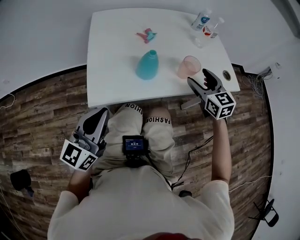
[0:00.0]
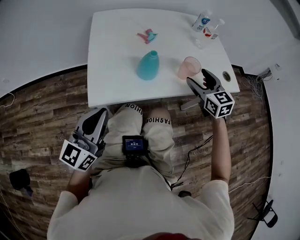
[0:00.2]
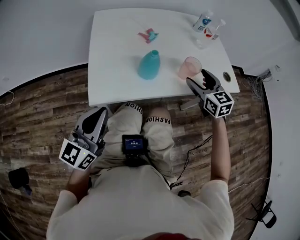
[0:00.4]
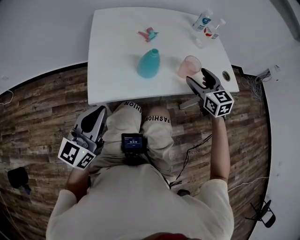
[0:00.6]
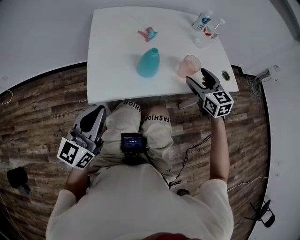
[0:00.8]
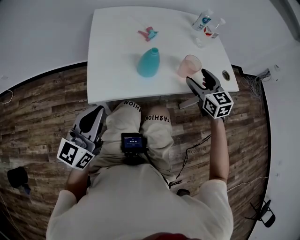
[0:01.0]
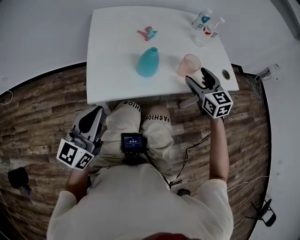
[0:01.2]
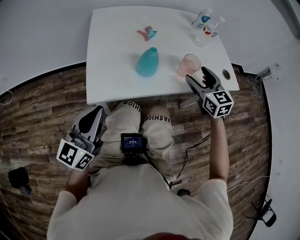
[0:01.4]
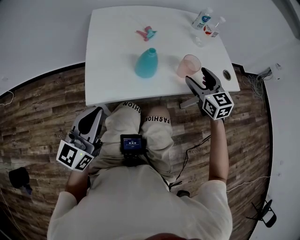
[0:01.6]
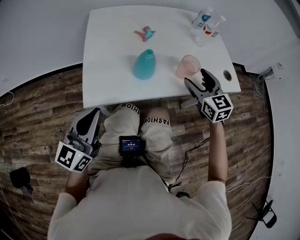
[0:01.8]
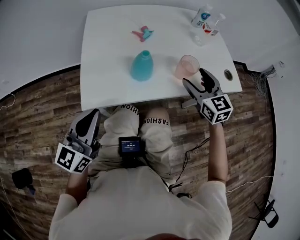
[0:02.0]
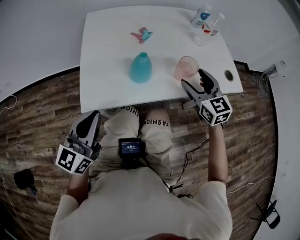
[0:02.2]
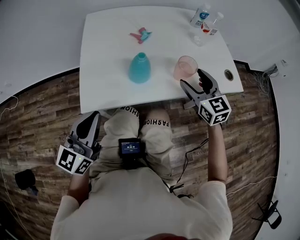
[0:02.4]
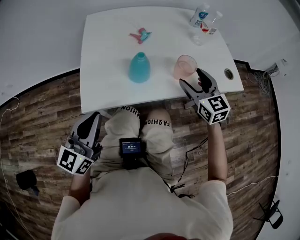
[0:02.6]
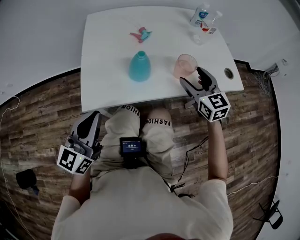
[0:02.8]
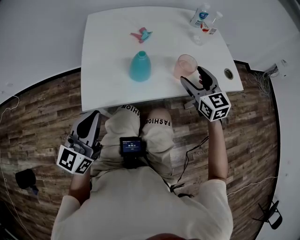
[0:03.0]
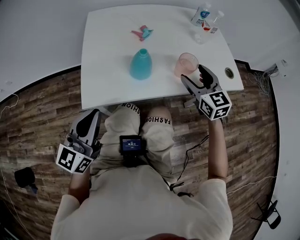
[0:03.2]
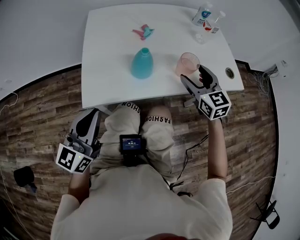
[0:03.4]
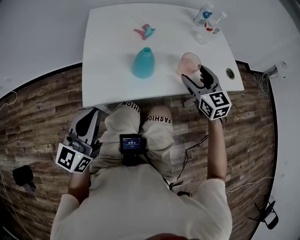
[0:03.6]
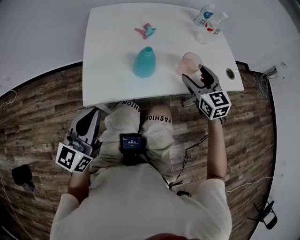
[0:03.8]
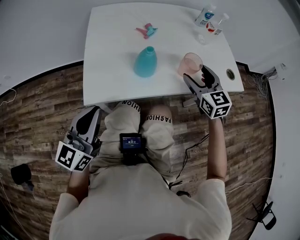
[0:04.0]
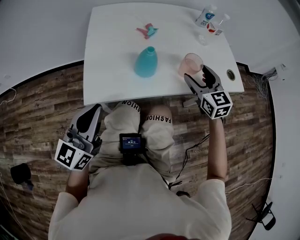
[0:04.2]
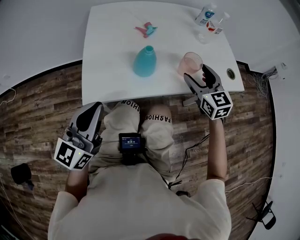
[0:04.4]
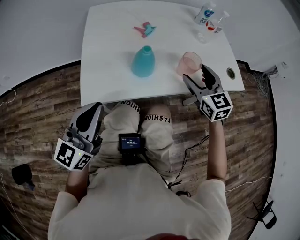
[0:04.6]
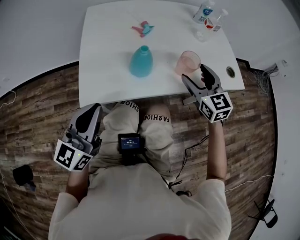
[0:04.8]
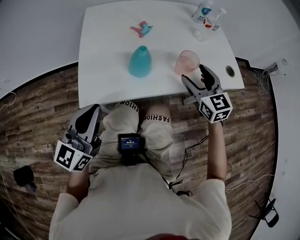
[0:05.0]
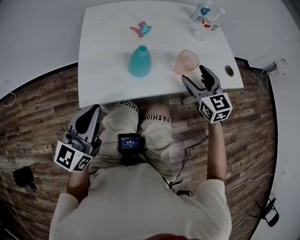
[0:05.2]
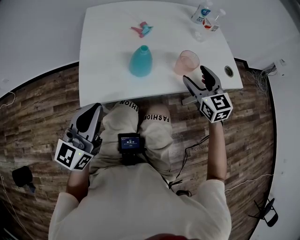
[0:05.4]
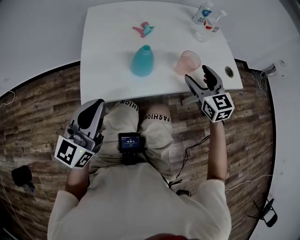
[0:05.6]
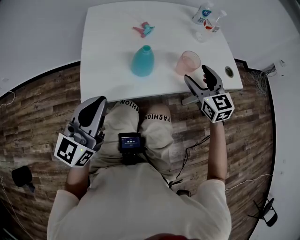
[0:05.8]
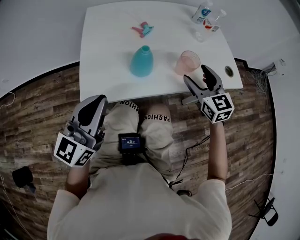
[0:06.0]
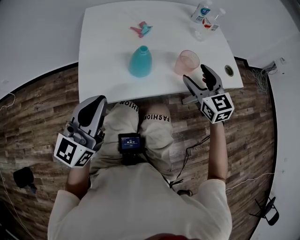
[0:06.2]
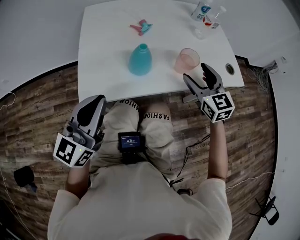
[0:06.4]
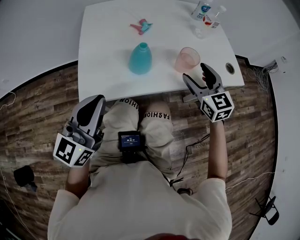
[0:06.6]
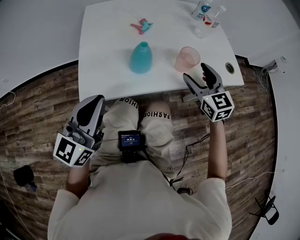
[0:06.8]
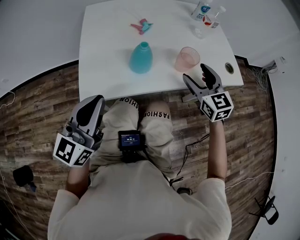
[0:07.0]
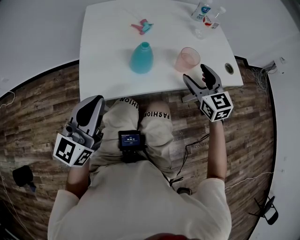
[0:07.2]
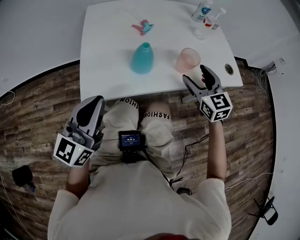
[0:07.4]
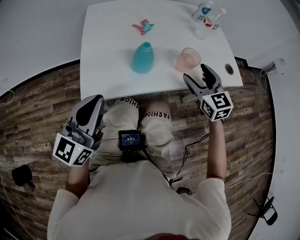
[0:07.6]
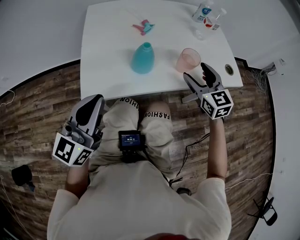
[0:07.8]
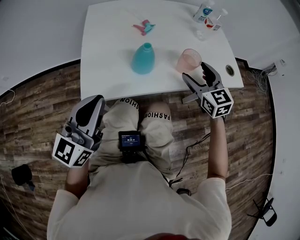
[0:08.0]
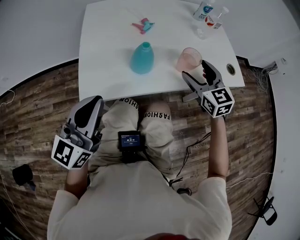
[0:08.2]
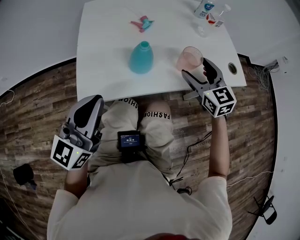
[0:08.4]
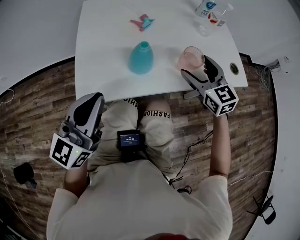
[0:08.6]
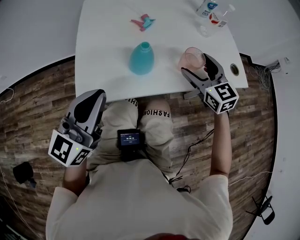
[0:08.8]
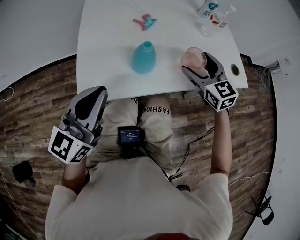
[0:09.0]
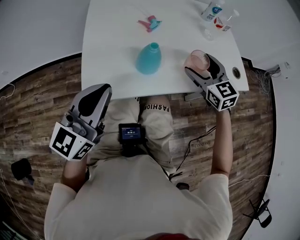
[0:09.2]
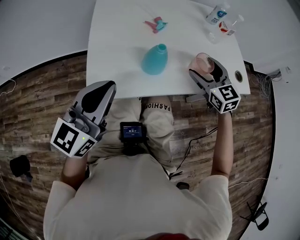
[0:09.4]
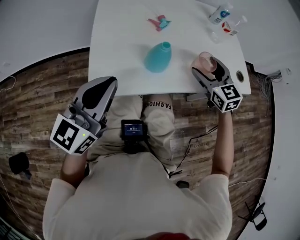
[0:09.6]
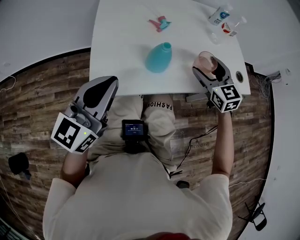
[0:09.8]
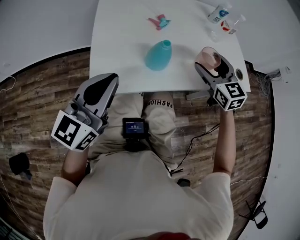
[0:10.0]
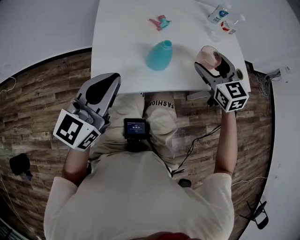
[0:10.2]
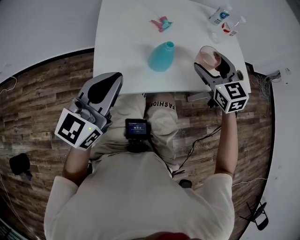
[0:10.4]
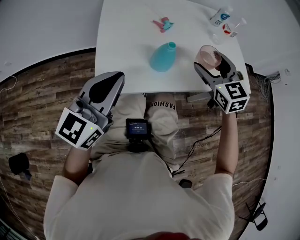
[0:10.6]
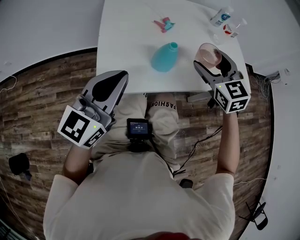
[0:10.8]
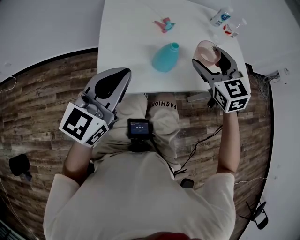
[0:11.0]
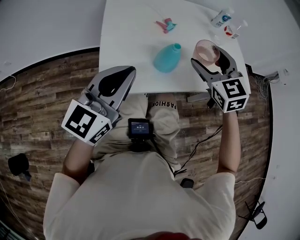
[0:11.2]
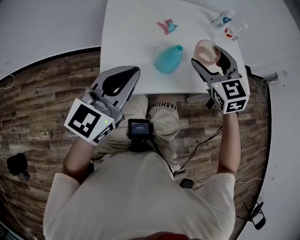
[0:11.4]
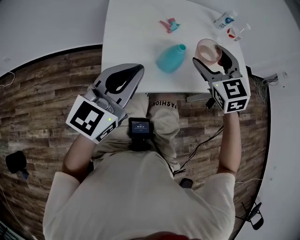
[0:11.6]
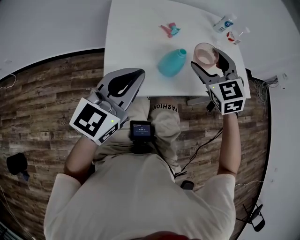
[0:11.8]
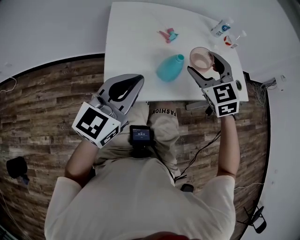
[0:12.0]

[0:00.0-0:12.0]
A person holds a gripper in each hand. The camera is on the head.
0.0 to 3.0 s: There are only small adjustments of the grippers.
3.0 to 4.4 s: Neither gripper changes place.
4.4 to 9.0 s: The grippers stay close to where they were, moving slightly.
9.0 to 10.4 s: The right gripper changes place by about 5 cm.
10.4 to 12.0 s: The right gripper moves to the left, approximately 10 cm.

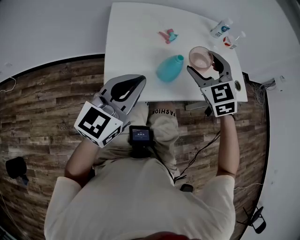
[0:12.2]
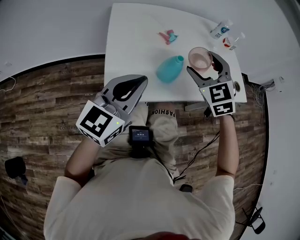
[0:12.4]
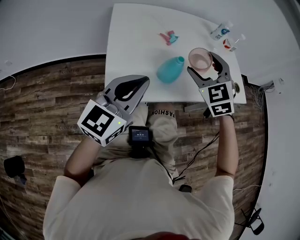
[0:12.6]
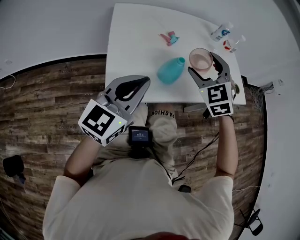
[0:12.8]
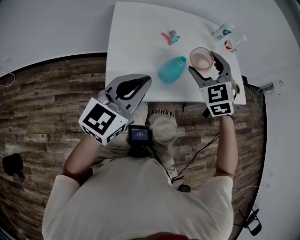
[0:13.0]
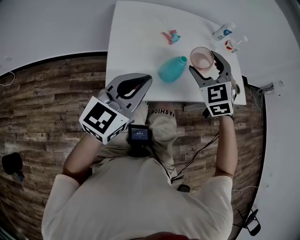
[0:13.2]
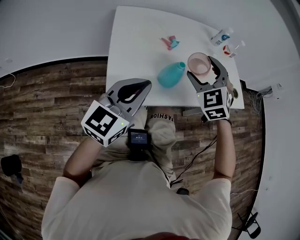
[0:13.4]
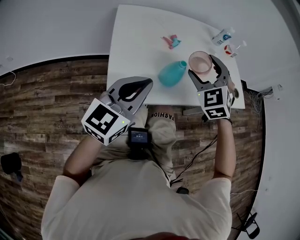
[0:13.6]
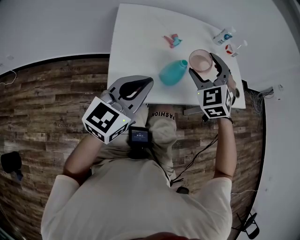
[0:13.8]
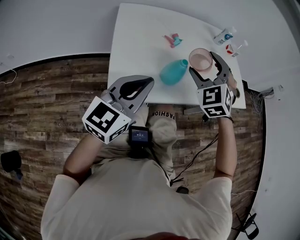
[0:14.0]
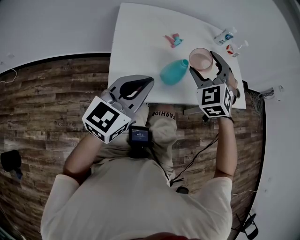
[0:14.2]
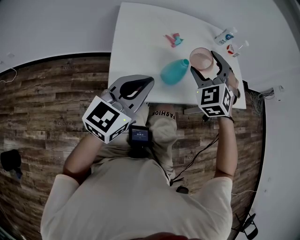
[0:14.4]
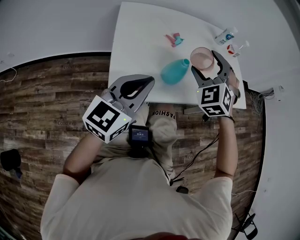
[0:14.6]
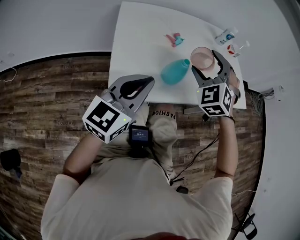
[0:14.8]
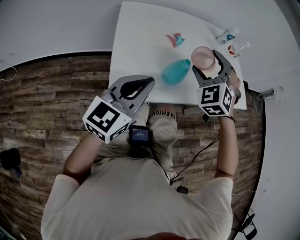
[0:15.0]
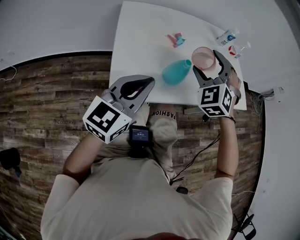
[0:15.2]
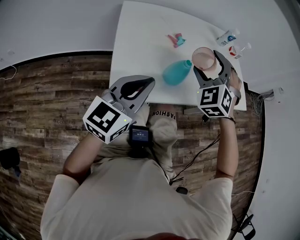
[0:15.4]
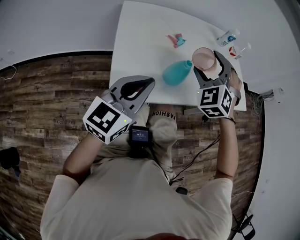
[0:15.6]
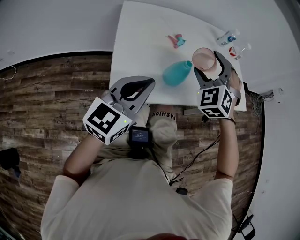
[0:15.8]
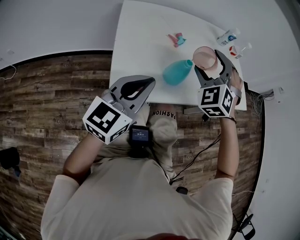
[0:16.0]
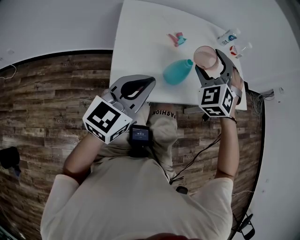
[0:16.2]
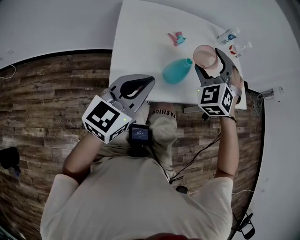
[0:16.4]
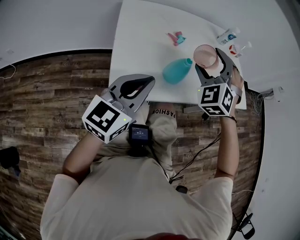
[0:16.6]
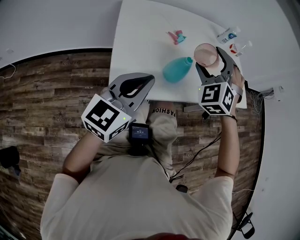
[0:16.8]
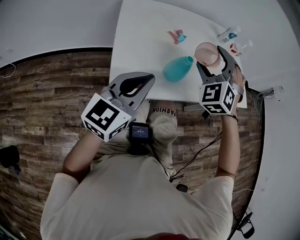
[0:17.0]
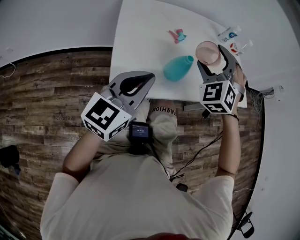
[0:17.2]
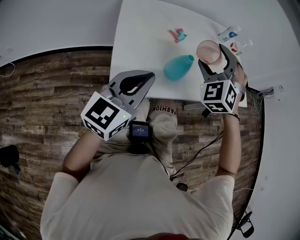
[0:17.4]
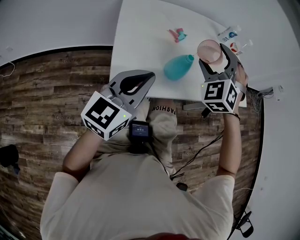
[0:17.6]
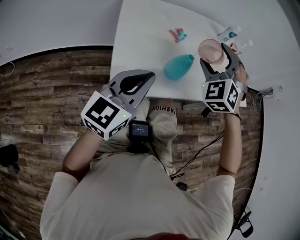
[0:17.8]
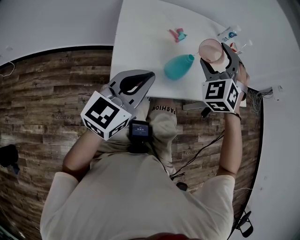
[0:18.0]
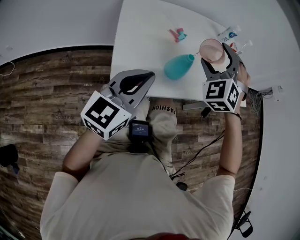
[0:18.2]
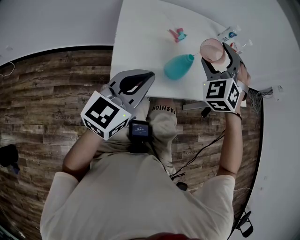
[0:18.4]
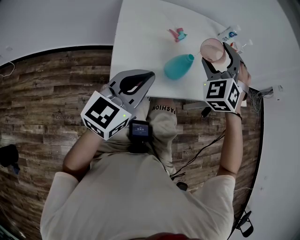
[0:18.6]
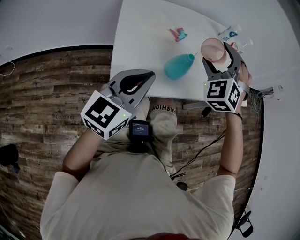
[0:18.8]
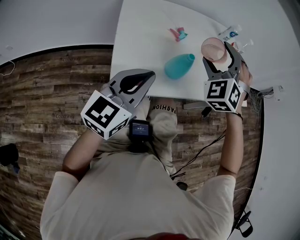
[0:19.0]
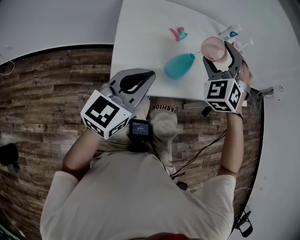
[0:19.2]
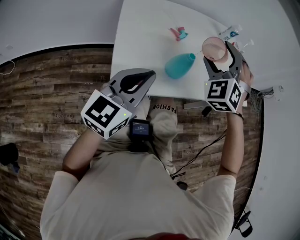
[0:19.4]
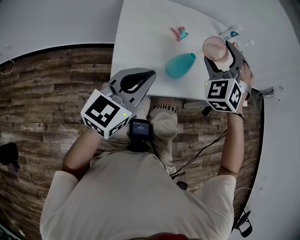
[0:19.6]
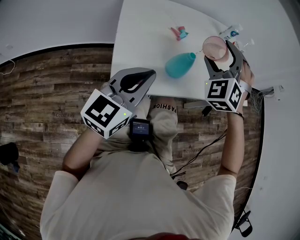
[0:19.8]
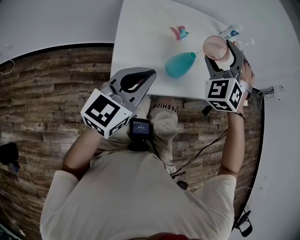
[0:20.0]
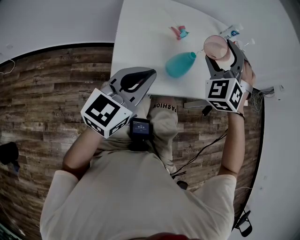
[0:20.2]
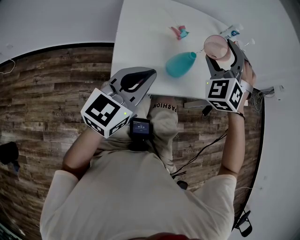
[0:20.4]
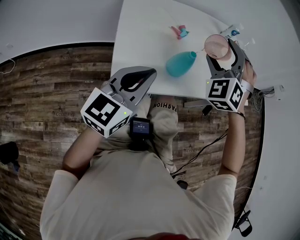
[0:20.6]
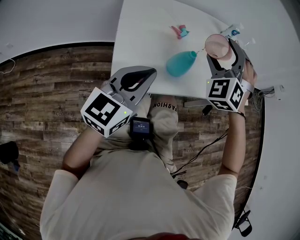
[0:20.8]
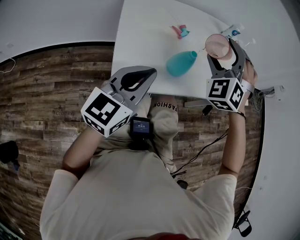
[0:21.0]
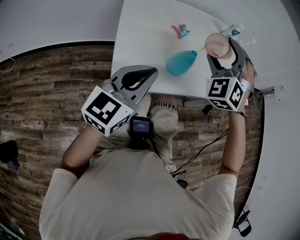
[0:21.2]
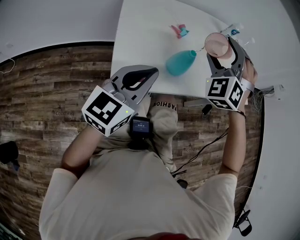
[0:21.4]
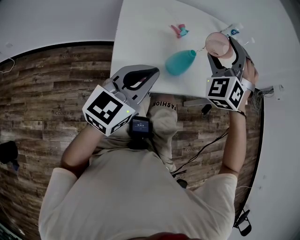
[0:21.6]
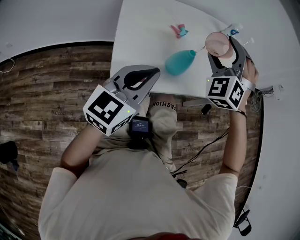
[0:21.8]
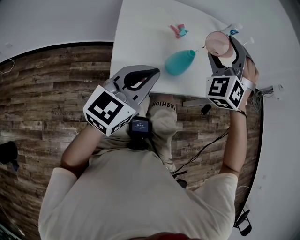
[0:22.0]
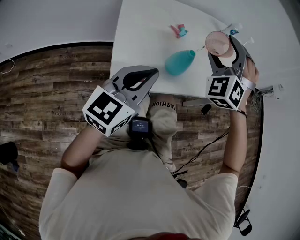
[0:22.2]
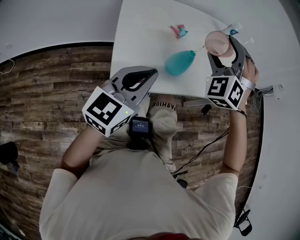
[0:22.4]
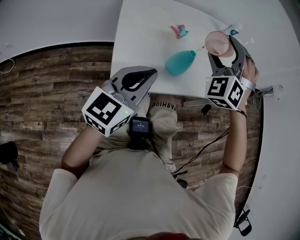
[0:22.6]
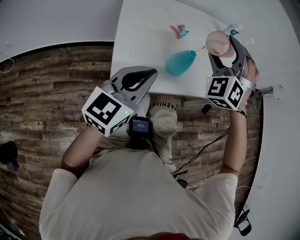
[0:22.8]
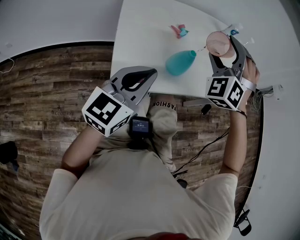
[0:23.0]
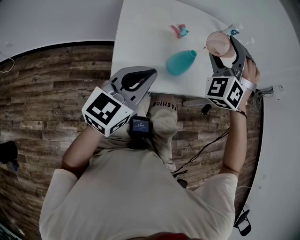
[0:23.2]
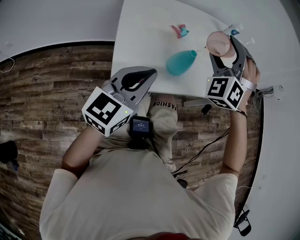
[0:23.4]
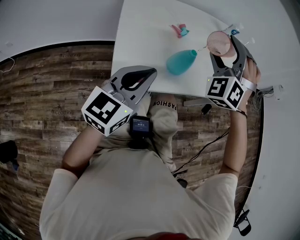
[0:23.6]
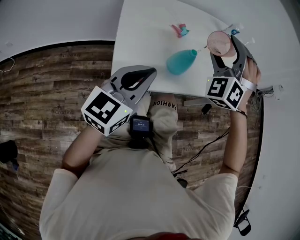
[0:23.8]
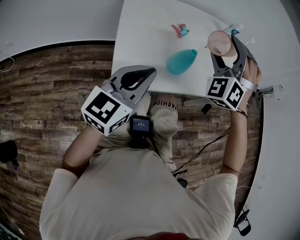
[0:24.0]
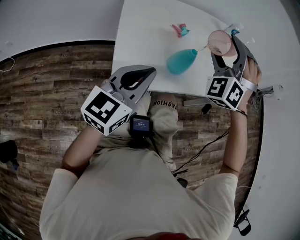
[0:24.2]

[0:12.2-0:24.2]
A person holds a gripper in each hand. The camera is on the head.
12.2 to 13.8 s: The grippers move only a little.
13.8 to 15.2 s: The grippers move only a little.
15.2 to 16.6 s: The two grippers keep their place.
16.6 to 18.2 s: The grippers stay close to where they were, moving slightly.
18.2 to 19.8 s: Neither gripper changes place.
19.8 to 21.2 s: Neither gripper changes place.
21.2 to 22.6 s: The two grippers keep their place.
22.6 to 24.2 s: The grippers move only a little.

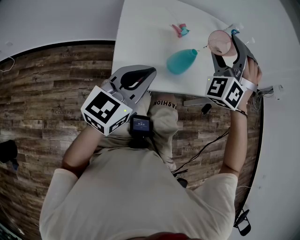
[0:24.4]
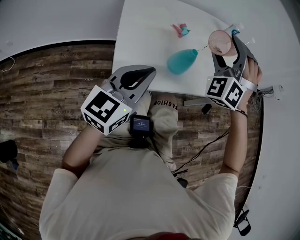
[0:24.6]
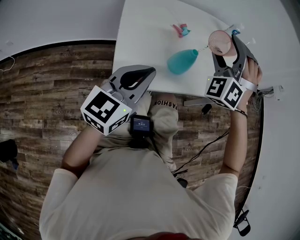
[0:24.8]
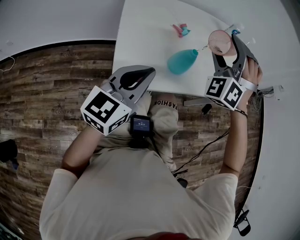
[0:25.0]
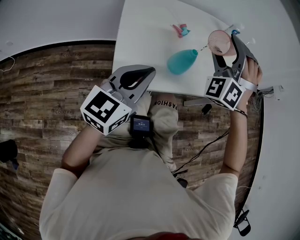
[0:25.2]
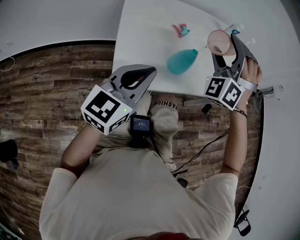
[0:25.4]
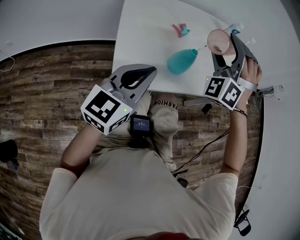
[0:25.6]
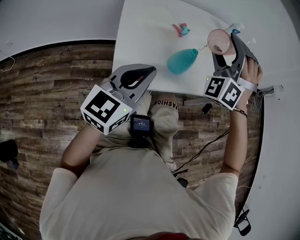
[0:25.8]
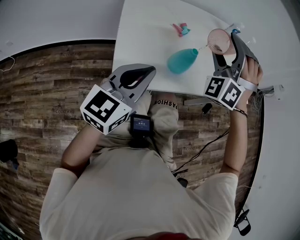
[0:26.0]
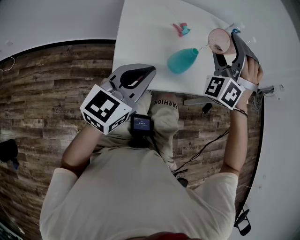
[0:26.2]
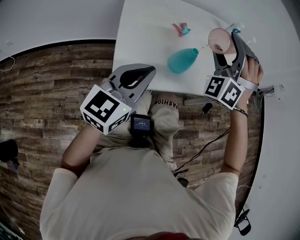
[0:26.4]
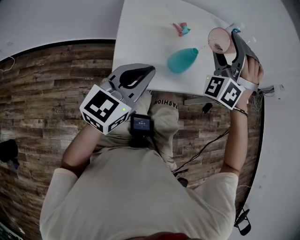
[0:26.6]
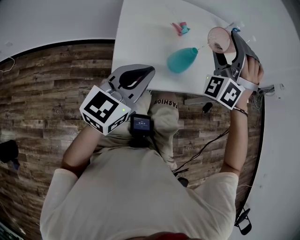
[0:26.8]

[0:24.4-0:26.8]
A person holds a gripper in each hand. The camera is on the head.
24.4 to 25.6 s: Both grippers stay about where they are.
25.6 to 26.8 s: Neither gripper changes place.
